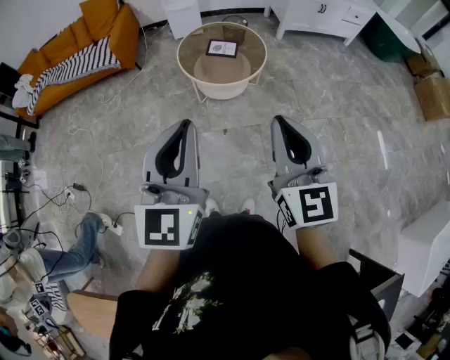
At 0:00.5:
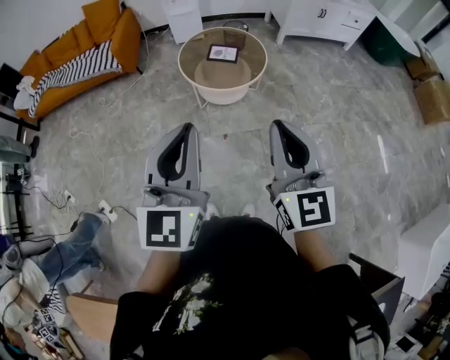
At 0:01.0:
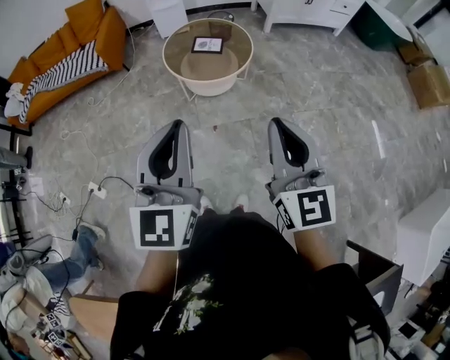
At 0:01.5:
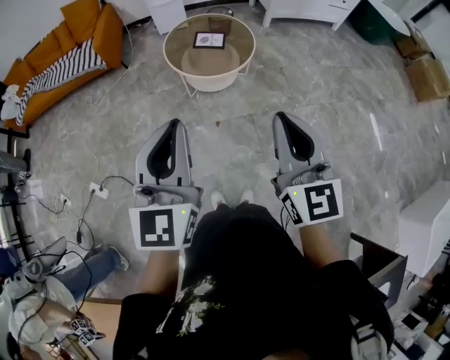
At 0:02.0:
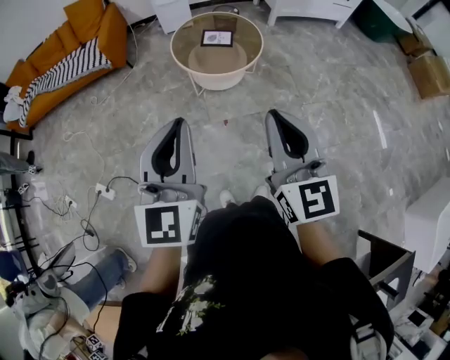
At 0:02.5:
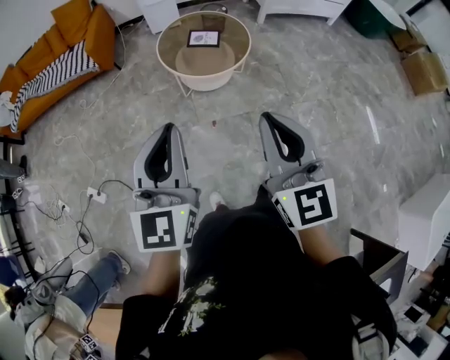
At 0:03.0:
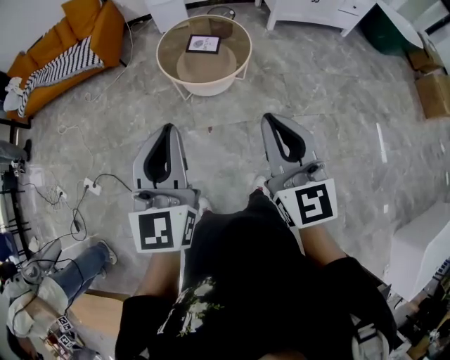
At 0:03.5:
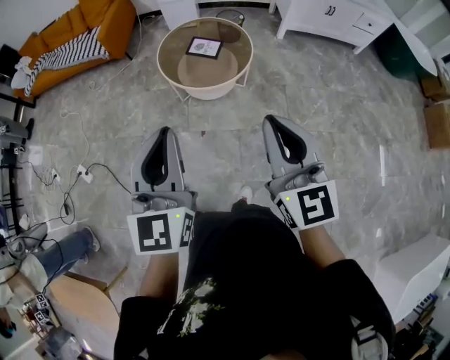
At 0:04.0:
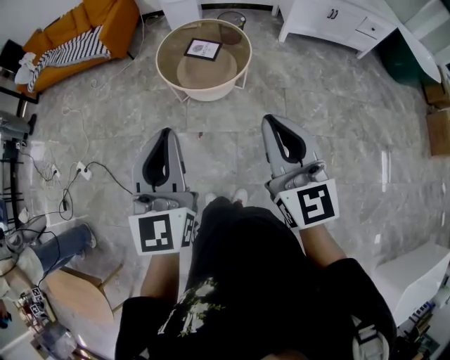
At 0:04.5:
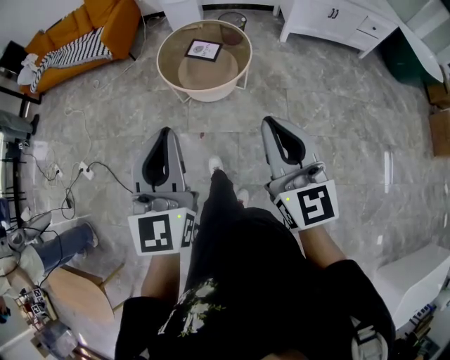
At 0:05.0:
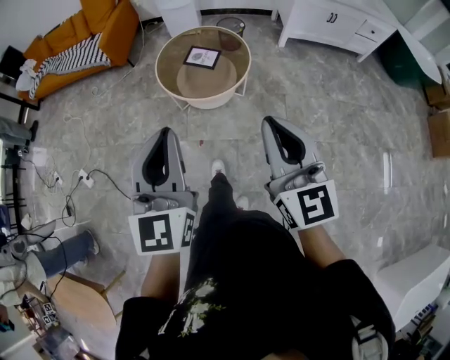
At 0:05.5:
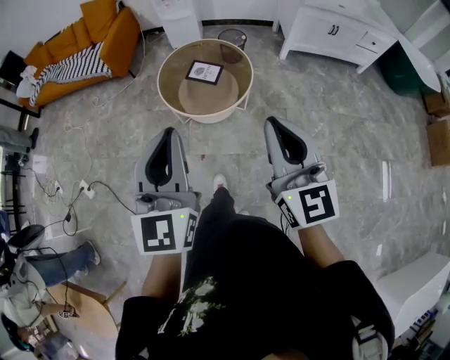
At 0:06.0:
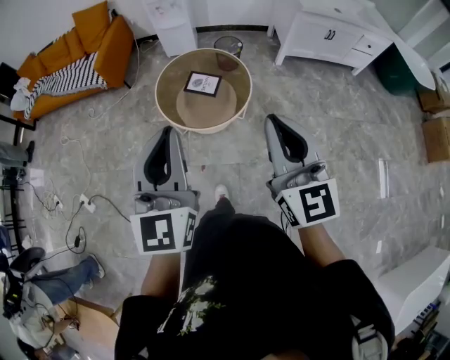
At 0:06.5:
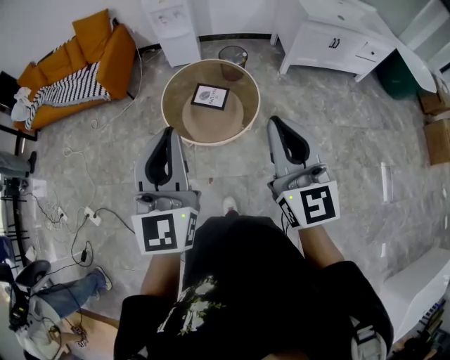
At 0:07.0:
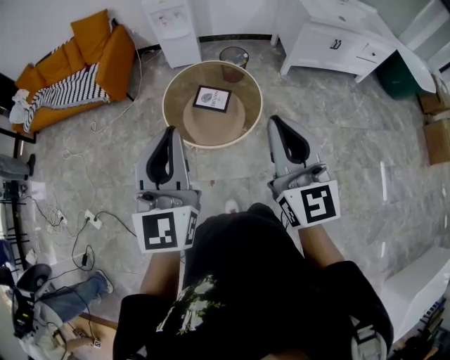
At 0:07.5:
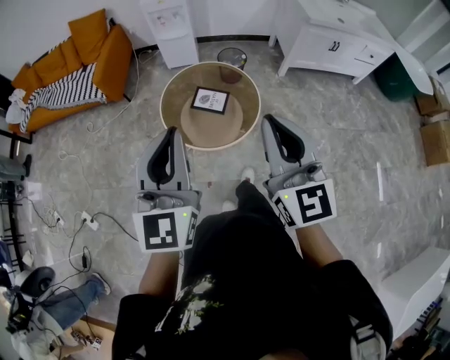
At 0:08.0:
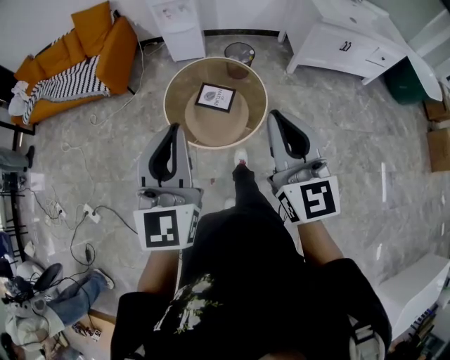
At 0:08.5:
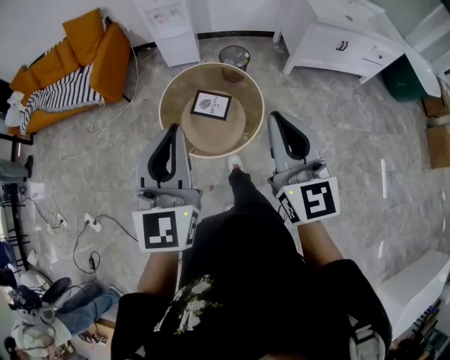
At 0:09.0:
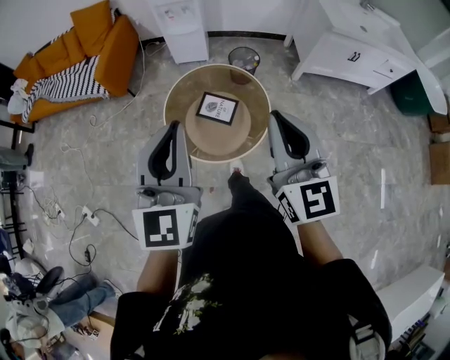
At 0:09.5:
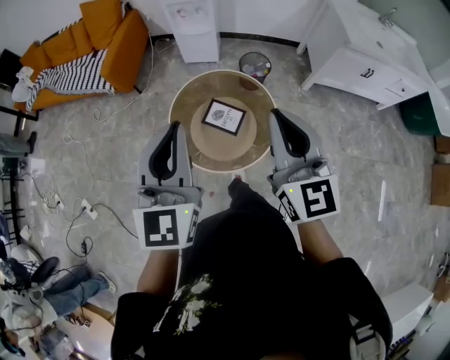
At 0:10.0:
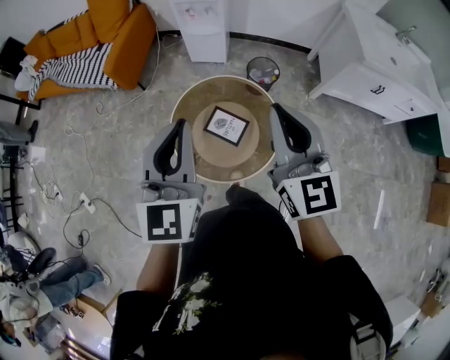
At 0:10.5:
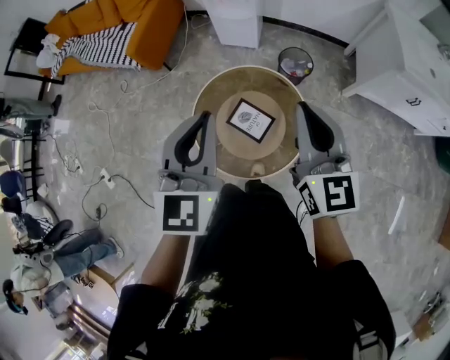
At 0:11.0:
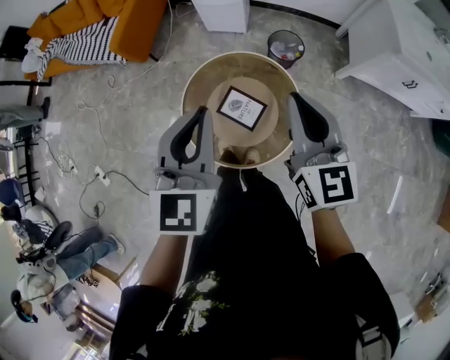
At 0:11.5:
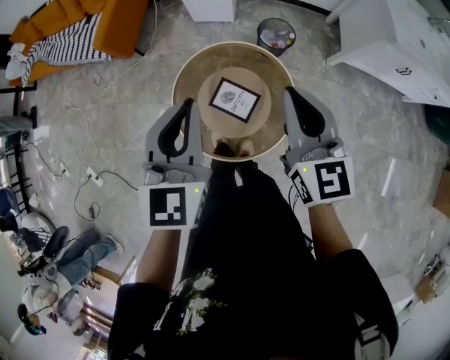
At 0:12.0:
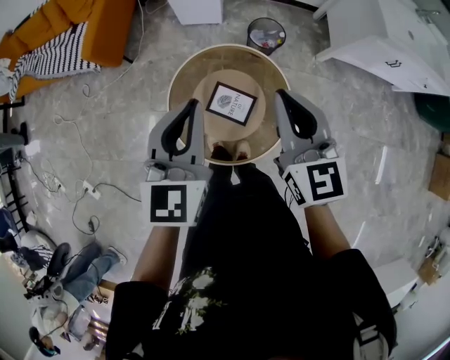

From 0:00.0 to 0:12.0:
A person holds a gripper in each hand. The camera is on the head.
From 0:00.0 to 0:02.0: The two grippers go about 5 cm to the left.
From 0:02.0 to 0:04.0: Both grippers move to the right, some 30 cm.
From 0:04.0 to 0:06.0: The two grippers go about 20 cm forward.
From 0:06.0 to 0:08.0: Both grippers travel together forward, some 15 cm.
From 0:08.0 to 0:10.0: Both grippers move forward, roughly 30 cm.
From 0:10.0 to 0:12.0: The grippers both shift forward and downward by roughly 15 cm.

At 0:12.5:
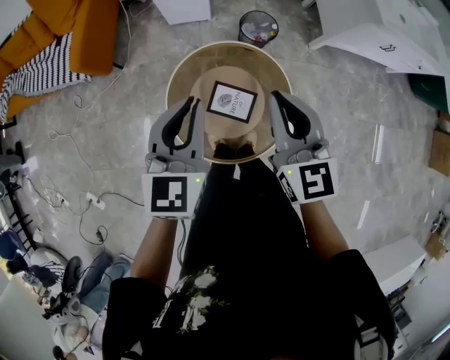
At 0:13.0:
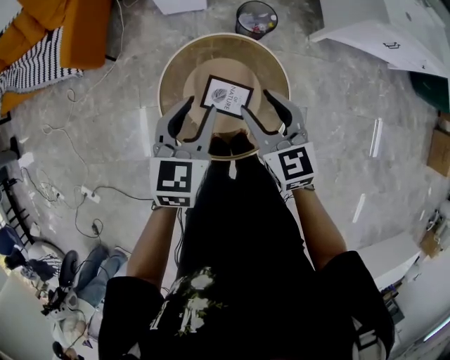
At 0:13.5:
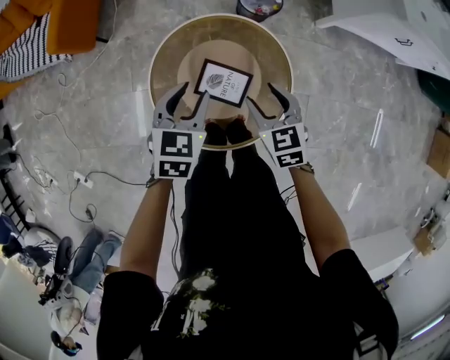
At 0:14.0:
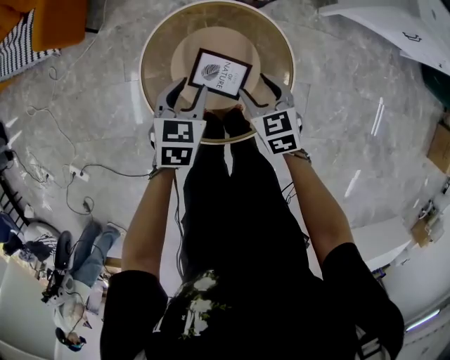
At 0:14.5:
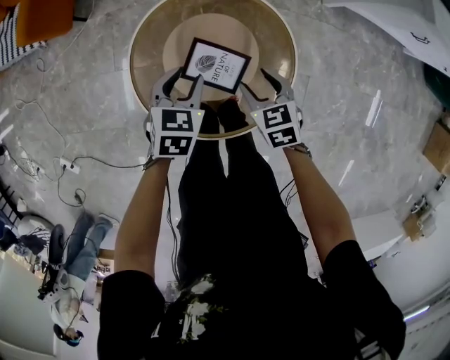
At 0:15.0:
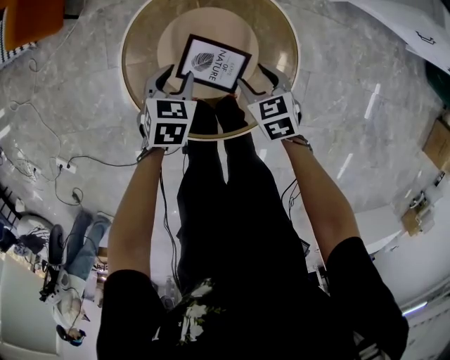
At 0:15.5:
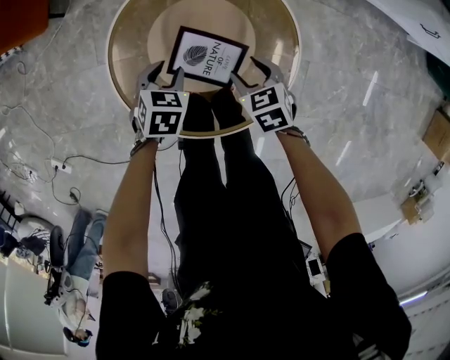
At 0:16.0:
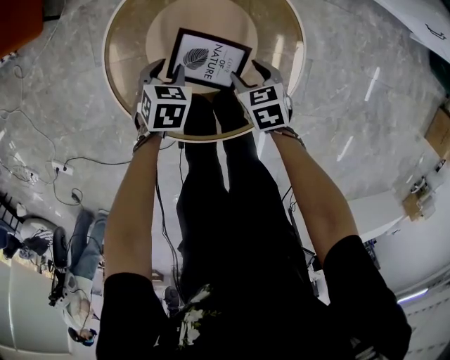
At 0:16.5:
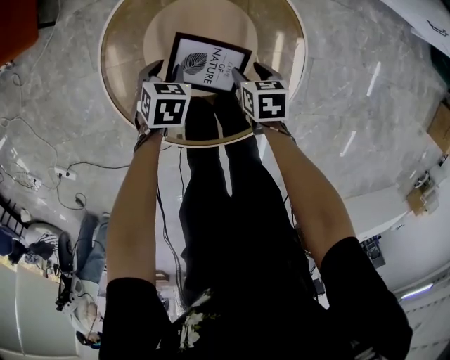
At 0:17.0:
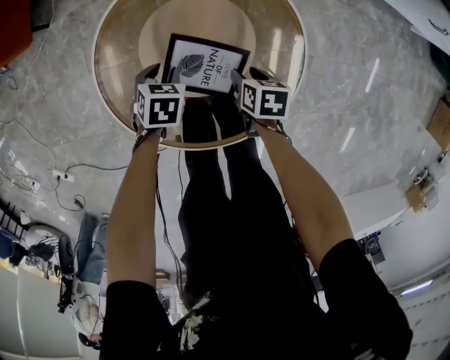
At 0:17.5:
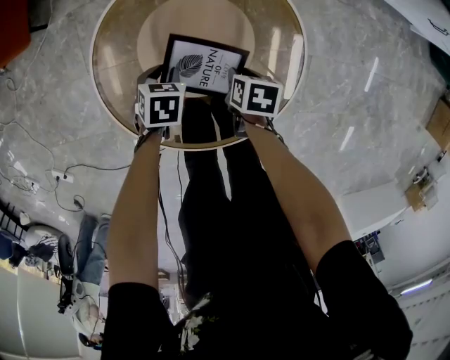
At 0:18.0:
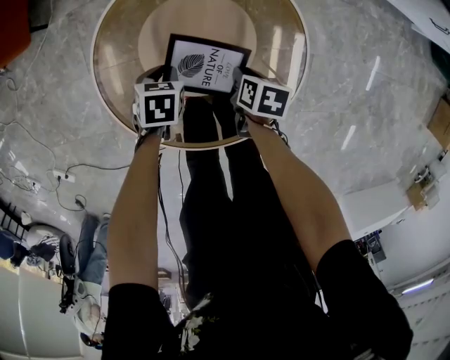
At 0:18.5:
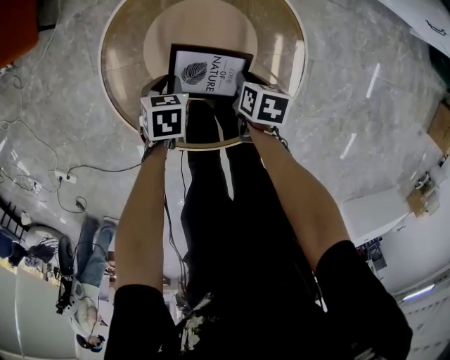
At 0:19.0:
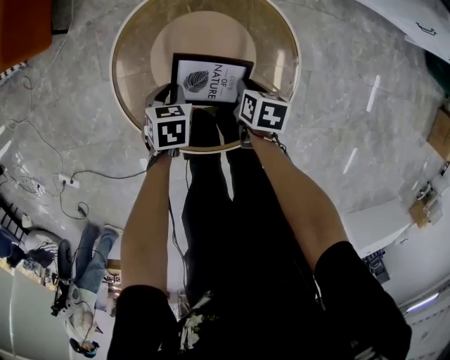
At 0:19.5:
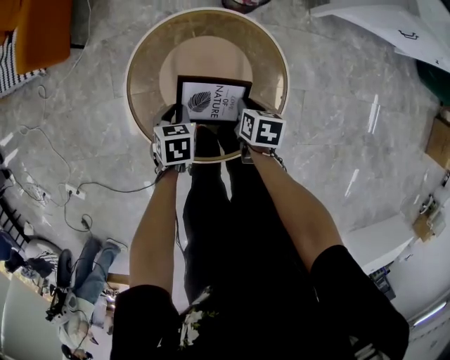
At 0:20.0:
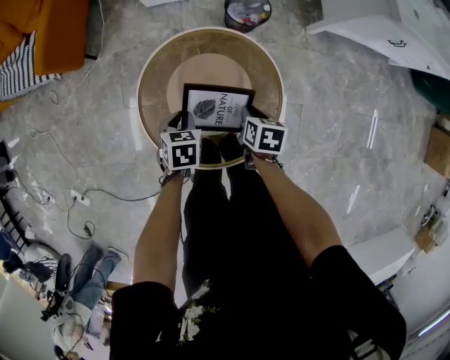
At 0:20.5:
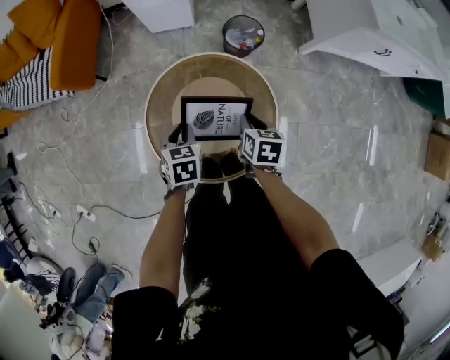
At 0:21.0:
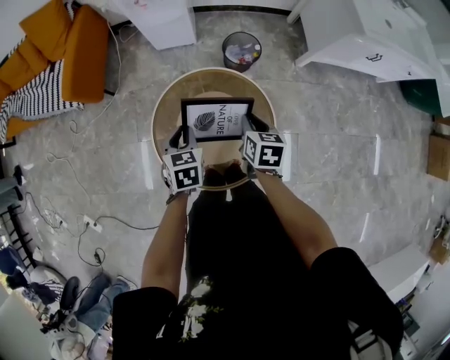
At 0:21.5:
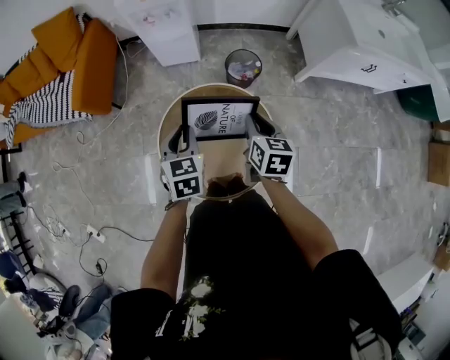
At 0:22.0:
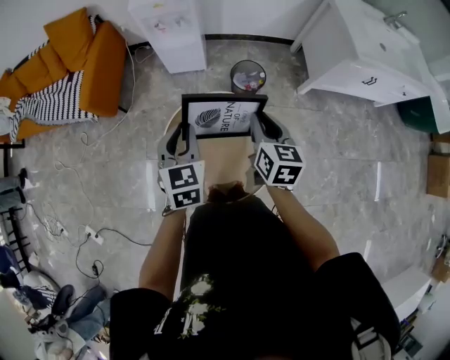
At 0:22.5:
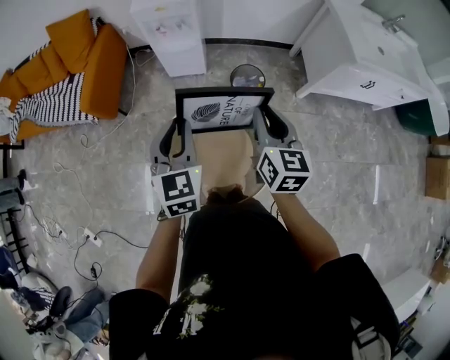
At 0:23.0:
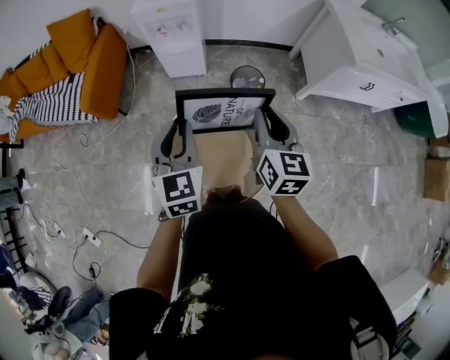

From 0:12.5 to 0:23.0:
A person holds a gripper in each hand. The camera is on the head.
From 0:12.5 to 0:14.5: Both grippers travel together downward, about 40 cm. The left gripper angles its fingers downward, by some 30 degrees, and opens. The right gripper tilts its fingers about 40 degrees downward, and opens its fingers.
From 0:14.5 to 0:16.5: The two grippers go roughly 20 cm downward. The right gripper swivels some 30 degrees.
From 0:16.5 to 0:19.0: The left gripper is displaced upward by about 5 cm, and closes; the right gripper closes.
From 0:19.0 to 0:21.0: The grippers both shift upward by approximately 30 cm. The right gripper rotates approximately 30 degrees, while the left gripper changes its angle by roughly 20 degrees.
From 0:21.0 to 0:23.0: The two grippers go approximately 25 cm upward. The right gripper points its fingers about 30 degrees further upward, while the left gripper angles its fingers upward, by approximately 30 degrees.

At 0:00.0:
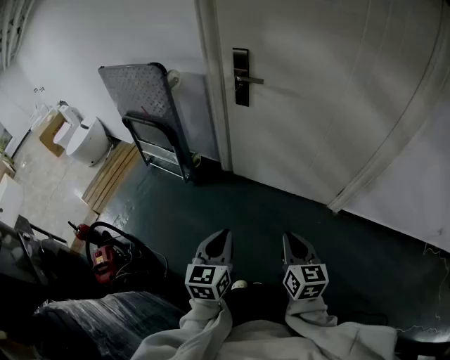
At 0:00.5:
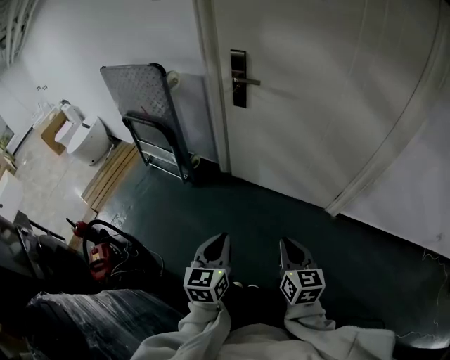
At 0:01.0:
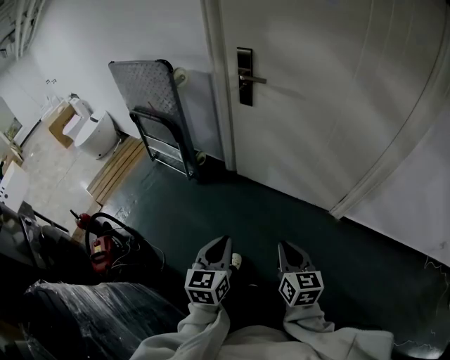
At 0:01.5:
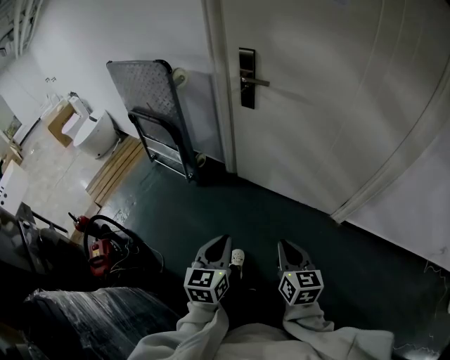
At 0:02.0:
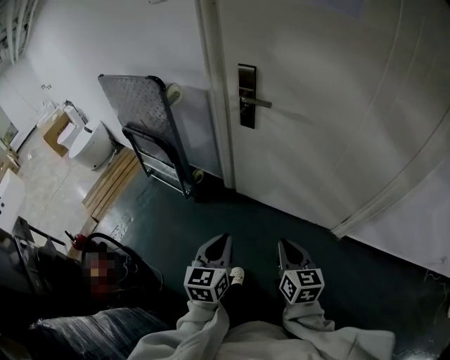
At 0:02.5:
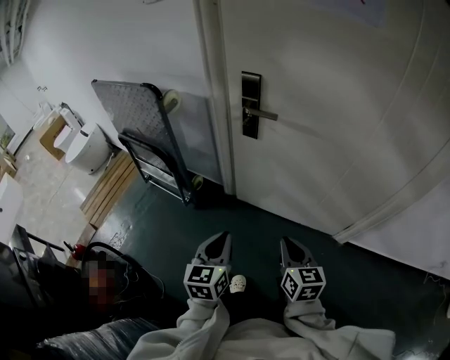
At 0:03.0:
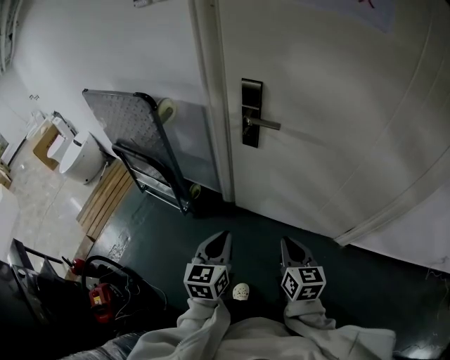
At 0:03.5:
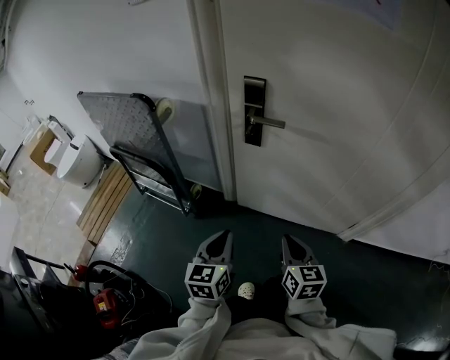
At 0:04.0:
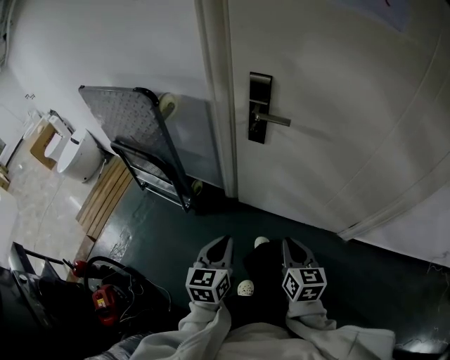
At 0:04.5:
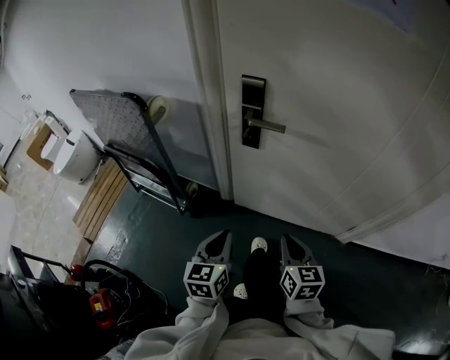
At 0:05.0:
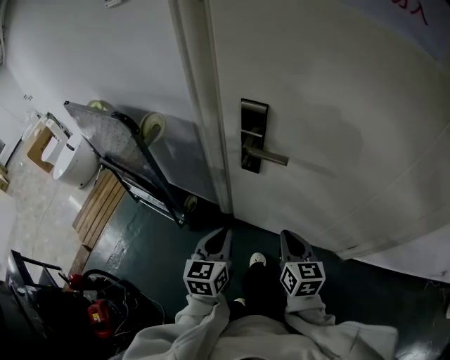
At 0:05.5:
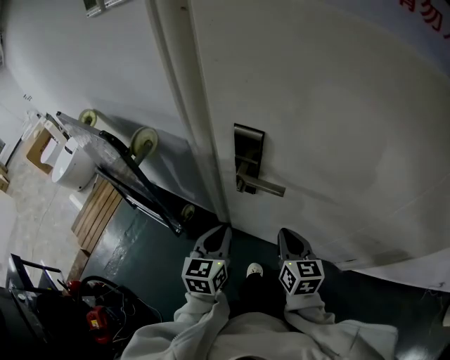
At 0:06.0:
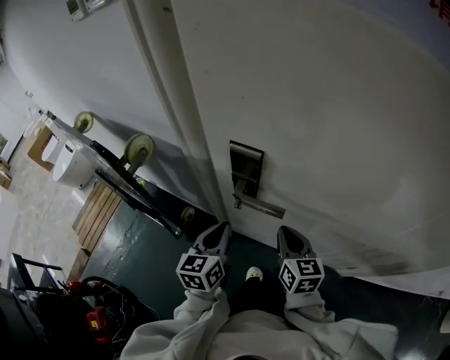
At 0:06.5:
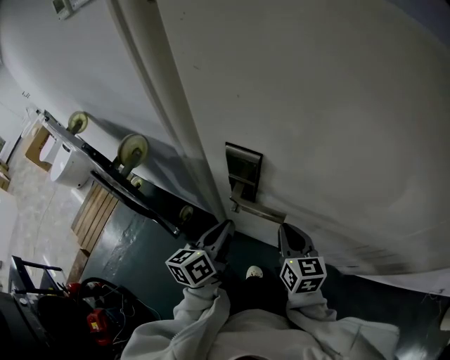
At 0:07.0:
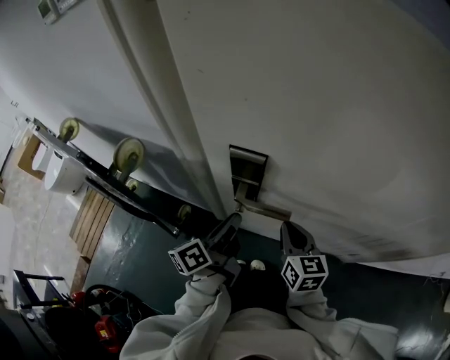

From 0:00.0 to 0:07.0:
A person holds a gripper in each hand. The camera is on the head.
From 0:00.0 to 0:02.0: Both grippers travel together forward, some 15 cm.
From 0:02.0 to 0:03.5: Both grippers travel together forward and to the left, roughly 15 cm.
From 0:03.5 to 0:05.0: Both grippers travel together forward, approximately 15 cm.
From 0:05.0 to 0:07.0: Both grippers move forward, roughly 15 cm. The left gripper rolls counterclockwise, seen from behind, by some 50 degrees.
